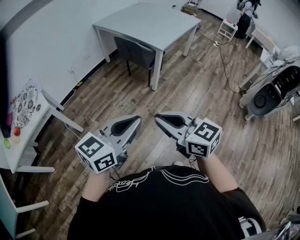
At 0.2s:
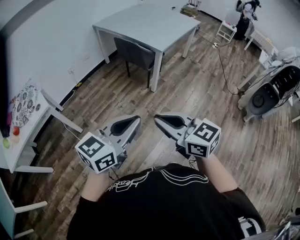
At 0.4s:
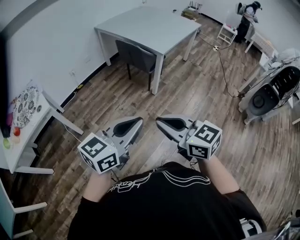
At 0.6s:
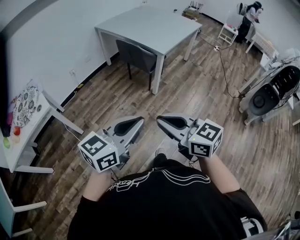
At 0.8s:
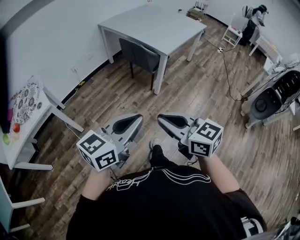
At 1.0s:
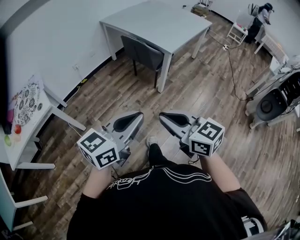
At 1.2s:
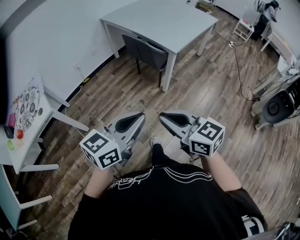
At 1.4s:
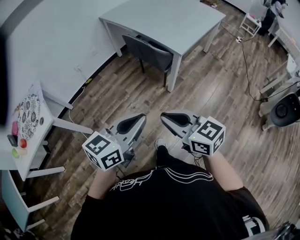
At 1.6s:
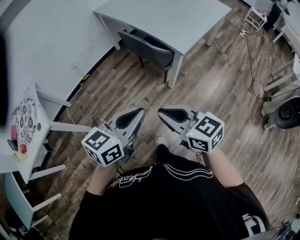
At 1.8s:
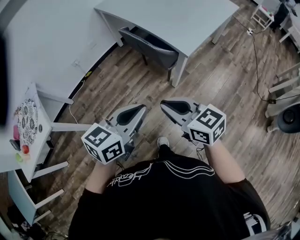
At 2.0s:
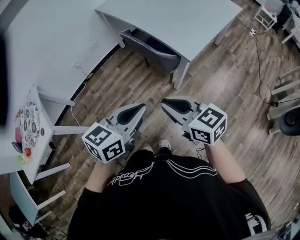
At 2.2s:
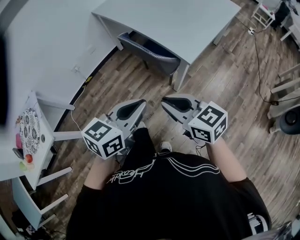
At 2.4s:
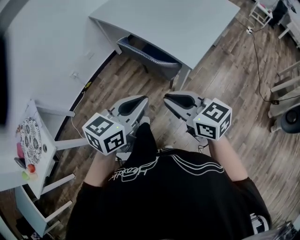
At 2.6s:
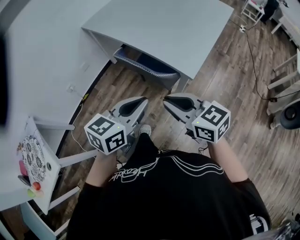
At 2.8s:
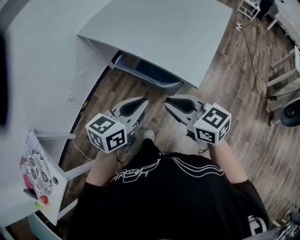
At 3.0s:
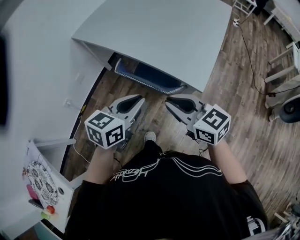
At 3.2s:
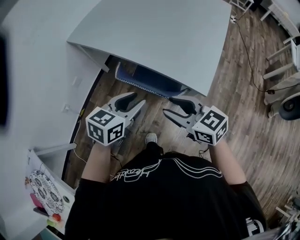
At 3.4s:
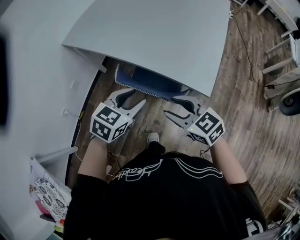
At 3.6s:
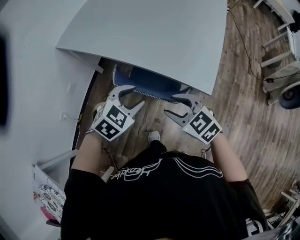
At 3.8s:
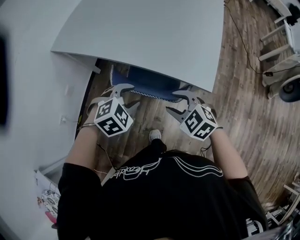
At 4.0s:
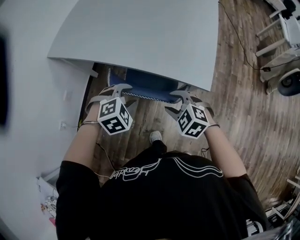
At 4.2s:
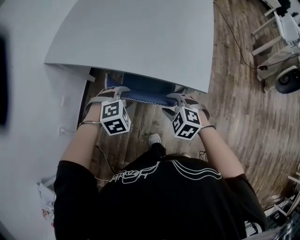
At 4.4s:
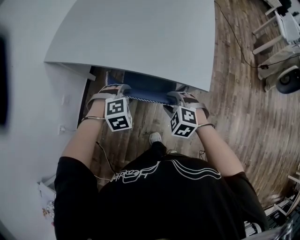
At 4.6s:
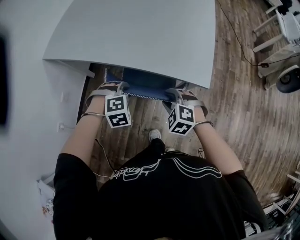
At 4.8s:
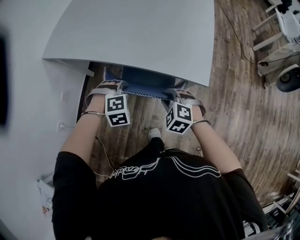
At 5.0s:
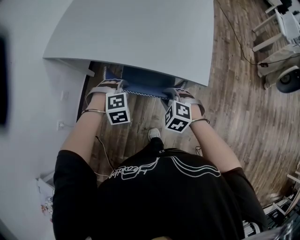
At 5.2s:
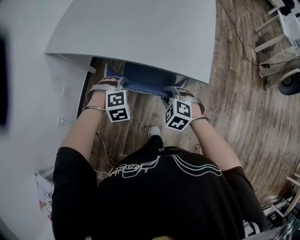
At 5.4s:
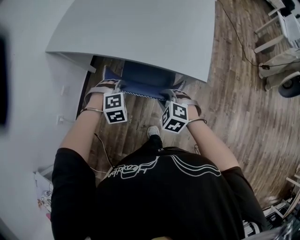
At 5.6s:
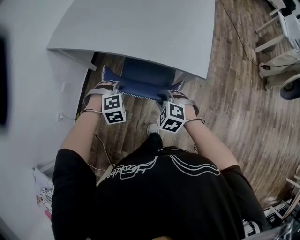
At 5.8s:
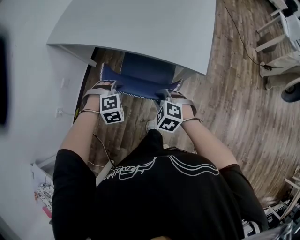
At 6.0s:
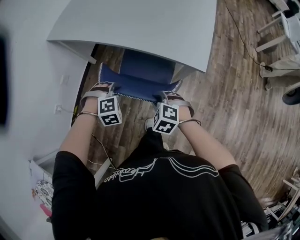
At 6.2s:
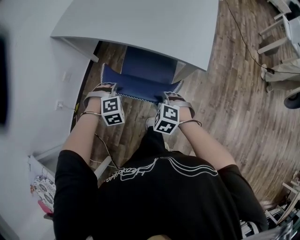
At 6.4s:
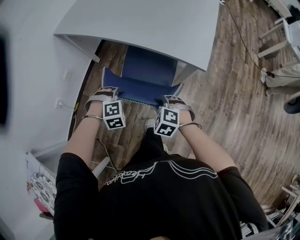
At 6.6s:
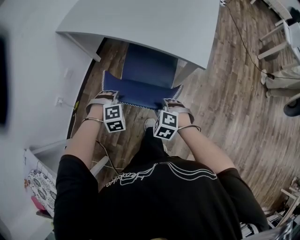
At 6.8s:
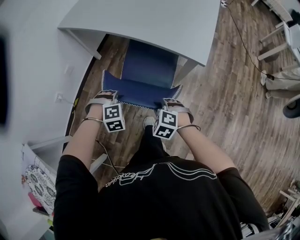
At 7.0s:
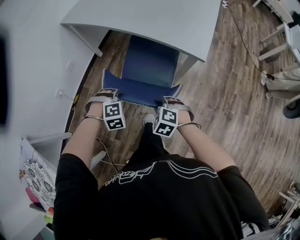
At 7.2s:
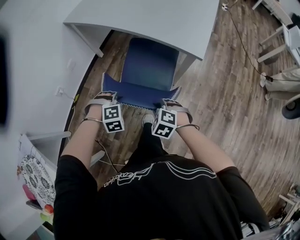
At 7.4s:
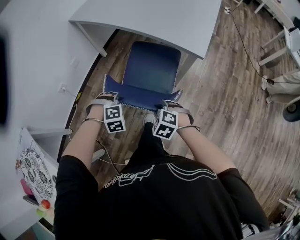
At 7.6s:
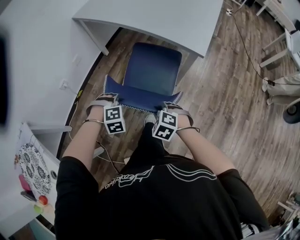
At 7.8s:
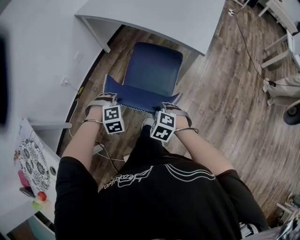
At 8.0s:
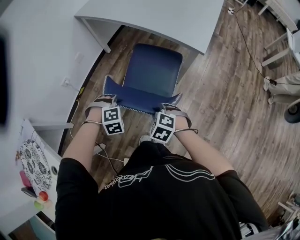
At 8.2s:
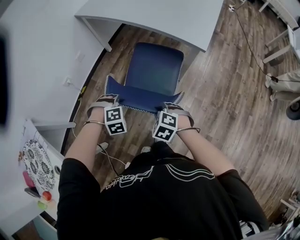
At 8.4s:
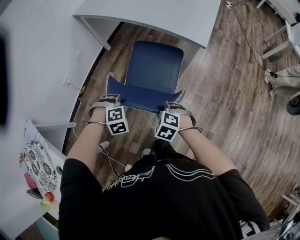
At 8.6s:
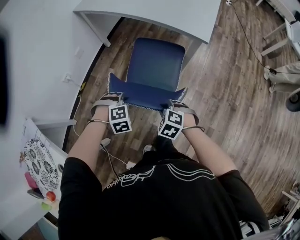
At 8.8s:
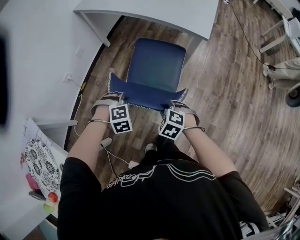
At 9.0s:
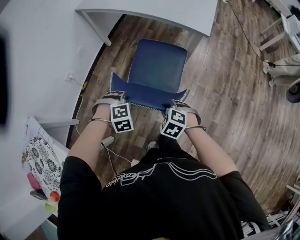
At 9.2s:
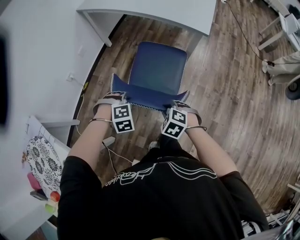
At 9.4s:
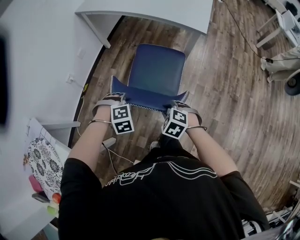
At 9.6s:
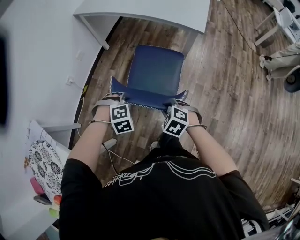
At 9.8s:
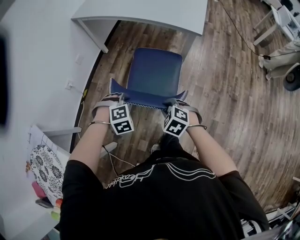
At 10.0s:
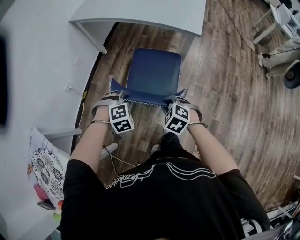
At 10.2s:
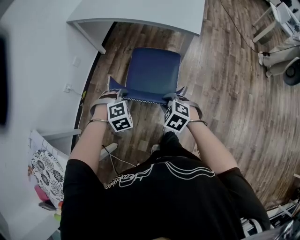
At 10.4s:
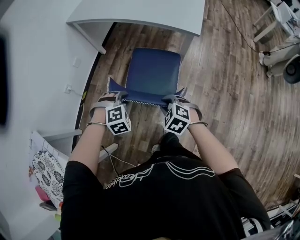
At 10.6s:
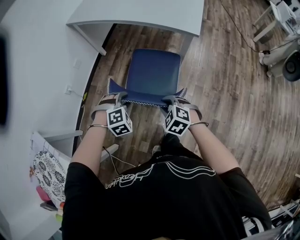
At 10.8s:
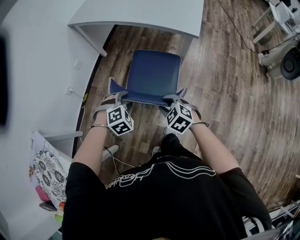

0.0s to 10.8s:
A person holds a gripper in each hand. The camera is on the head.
0.0s to 1.6s: Both grippers travel together forward, about 30 cm.
1.6s to 3.0s: The grippers both shift forward by about 35 cm.
3.0s to 4.6s: Both grippers move downward and forward, about 25 cm. The right gripper points its fingers some 40 degrees further downward, and opens up. The left gripper rolls clockwise, seen from behind, by roughly 80 degrees, and opens up.
4.6s to 6.2s: The grippers both shift backward by some 10 cm. The right gripper closes its fingers.
6.2s to 7.8s: The grippers both shift backward by about 20 cm.
7.8s to 9.2s: Both grippers move backward and to the left, some 10 cm.
9.2s to 10.8s: The left gripper moves about 5 cm, and opens up. The right gripper changes place by roughly 5 cm.

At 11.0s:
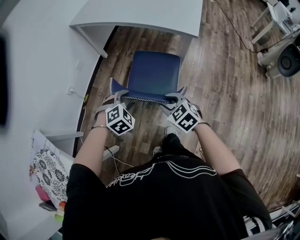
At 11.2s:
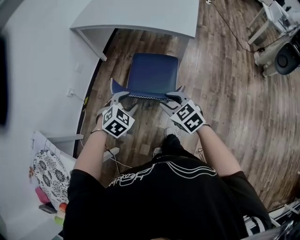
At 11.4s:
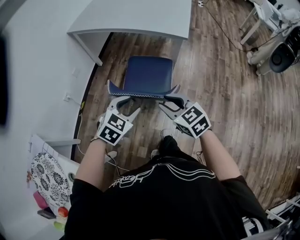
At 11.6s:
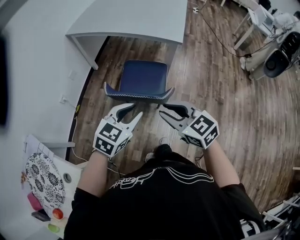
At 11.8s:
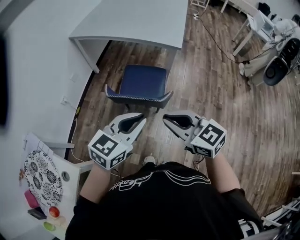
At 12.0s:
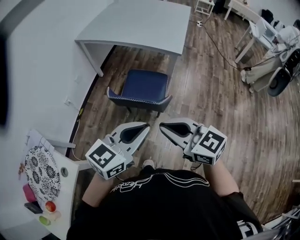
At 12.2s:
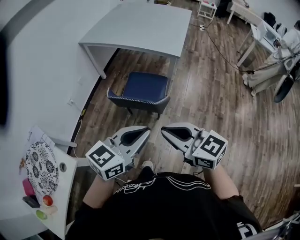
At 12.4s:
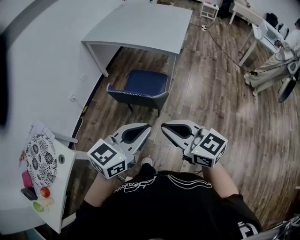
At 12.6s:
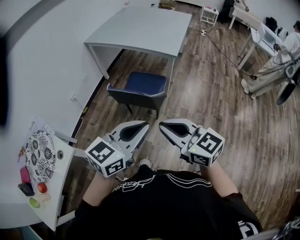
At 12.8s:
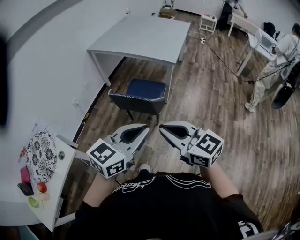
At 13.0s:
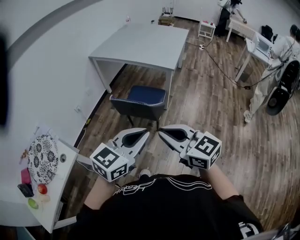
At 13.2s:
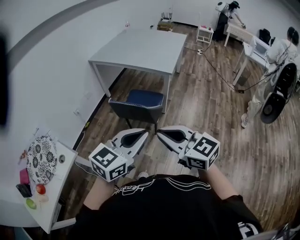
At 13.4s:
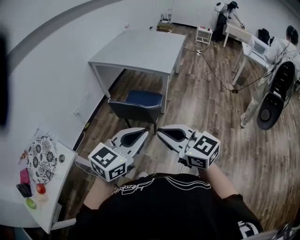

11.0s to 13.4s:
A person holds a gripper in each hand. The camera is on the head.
11.0s to 12.2s: The right gripper shifts roughly 35 cm upward and backward, angles its fingers upward, by roughly 30 degrees, and closes up. Meanwhile the left gripper travels upward, backward and to the right by about 40 cm, tilts its fingers roughly 50 degrees upward, and closes.
12.2s to 13.4s: Both grippers travel together backward, upward and to the right, some 15 cm.

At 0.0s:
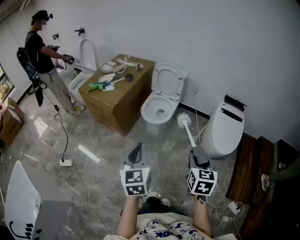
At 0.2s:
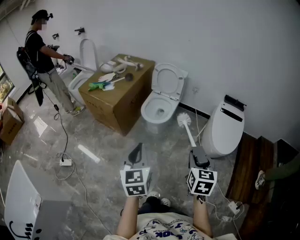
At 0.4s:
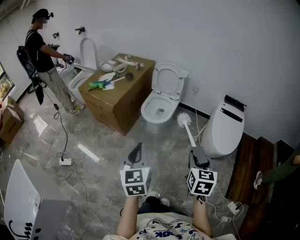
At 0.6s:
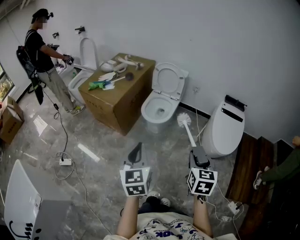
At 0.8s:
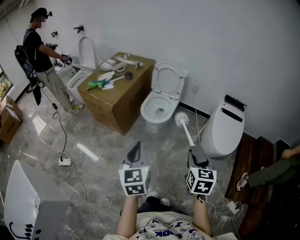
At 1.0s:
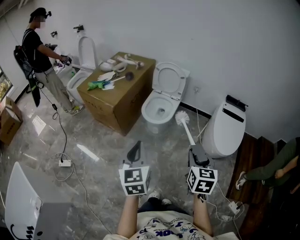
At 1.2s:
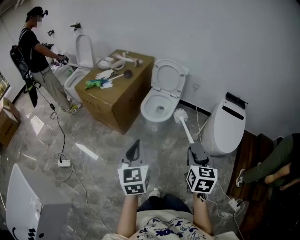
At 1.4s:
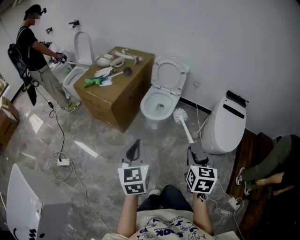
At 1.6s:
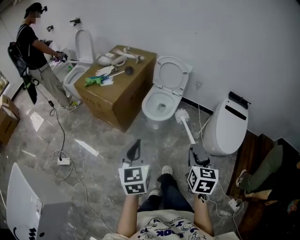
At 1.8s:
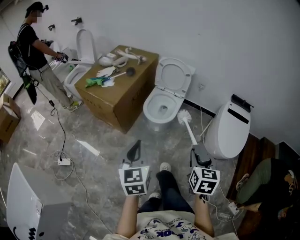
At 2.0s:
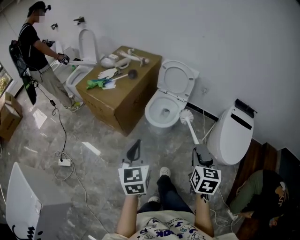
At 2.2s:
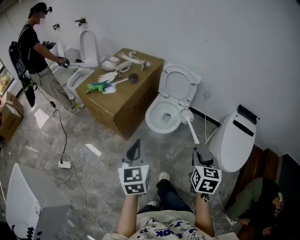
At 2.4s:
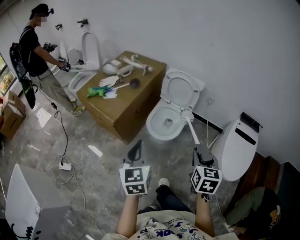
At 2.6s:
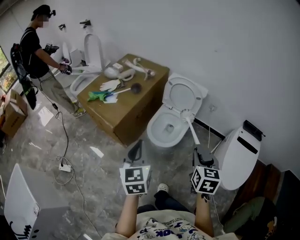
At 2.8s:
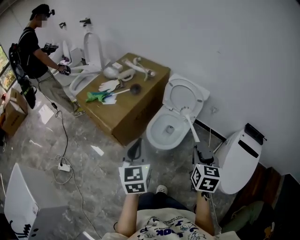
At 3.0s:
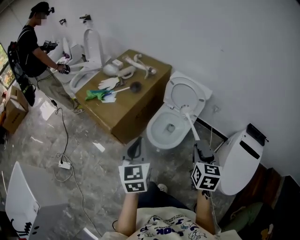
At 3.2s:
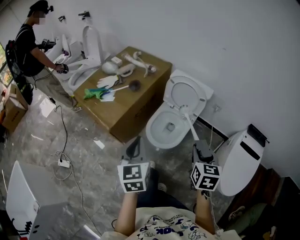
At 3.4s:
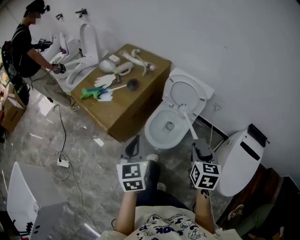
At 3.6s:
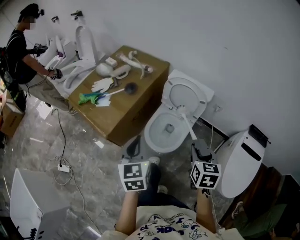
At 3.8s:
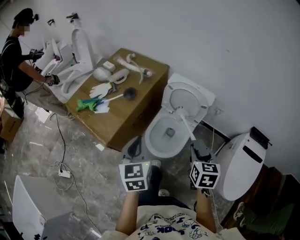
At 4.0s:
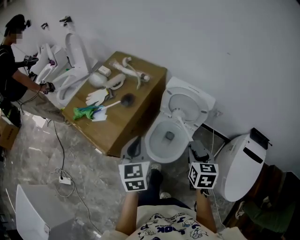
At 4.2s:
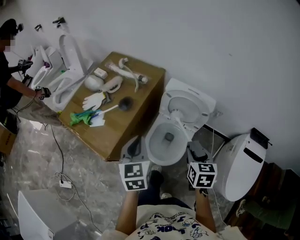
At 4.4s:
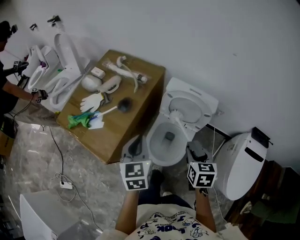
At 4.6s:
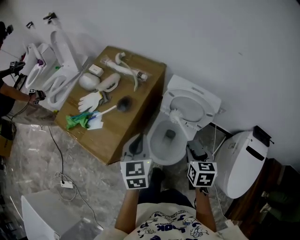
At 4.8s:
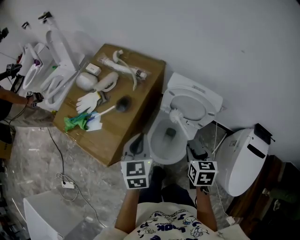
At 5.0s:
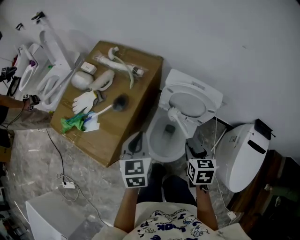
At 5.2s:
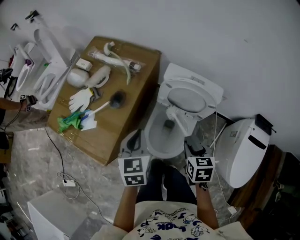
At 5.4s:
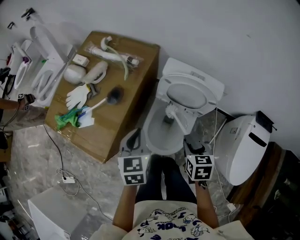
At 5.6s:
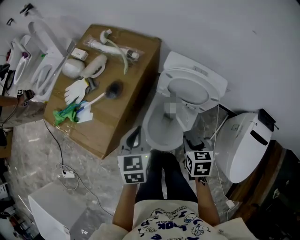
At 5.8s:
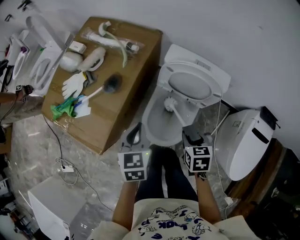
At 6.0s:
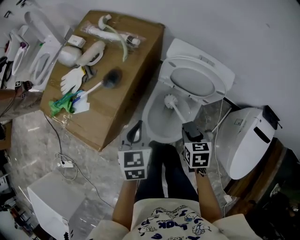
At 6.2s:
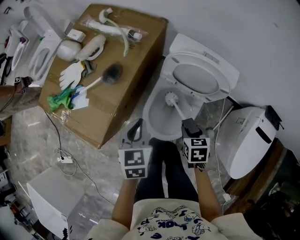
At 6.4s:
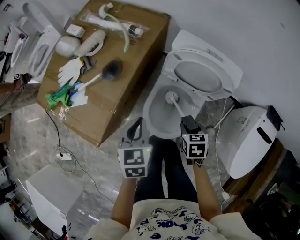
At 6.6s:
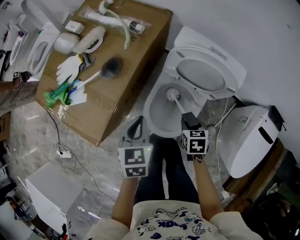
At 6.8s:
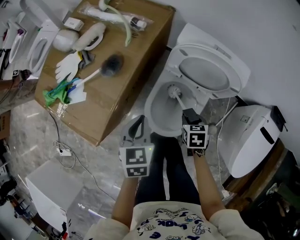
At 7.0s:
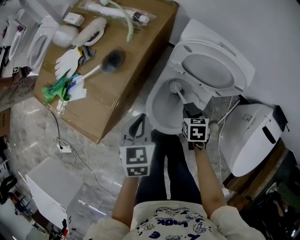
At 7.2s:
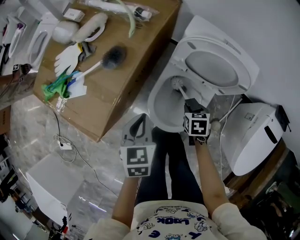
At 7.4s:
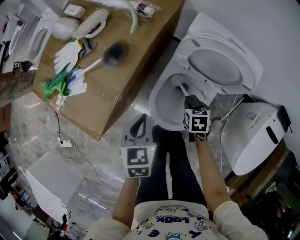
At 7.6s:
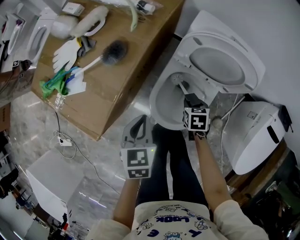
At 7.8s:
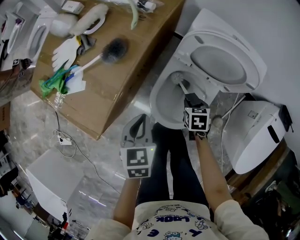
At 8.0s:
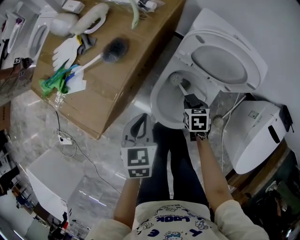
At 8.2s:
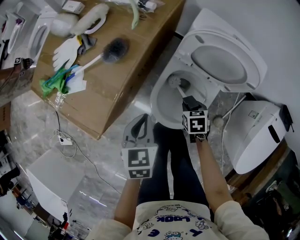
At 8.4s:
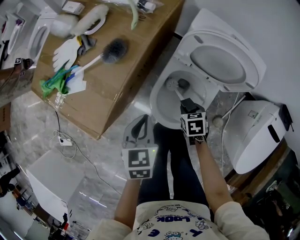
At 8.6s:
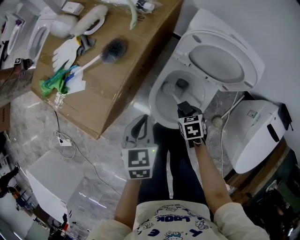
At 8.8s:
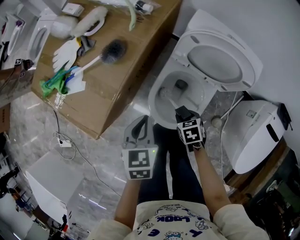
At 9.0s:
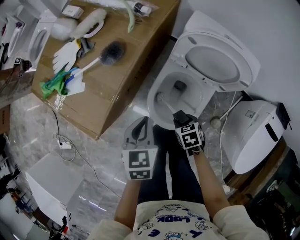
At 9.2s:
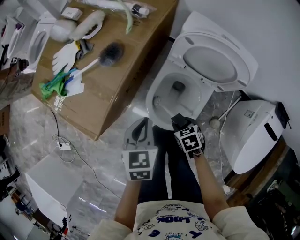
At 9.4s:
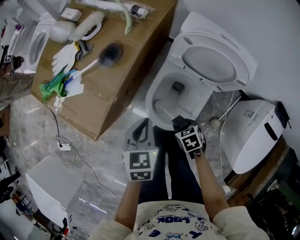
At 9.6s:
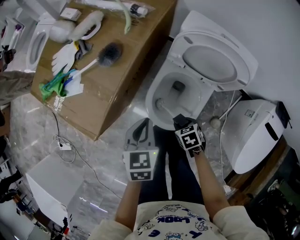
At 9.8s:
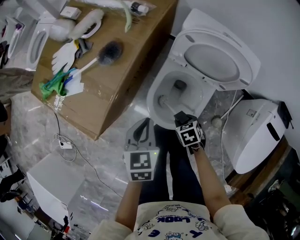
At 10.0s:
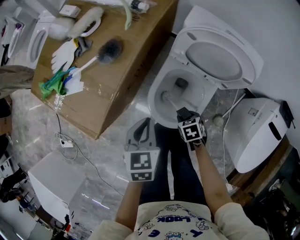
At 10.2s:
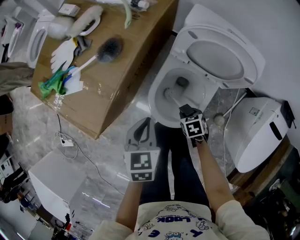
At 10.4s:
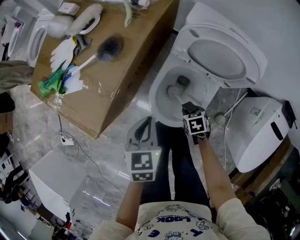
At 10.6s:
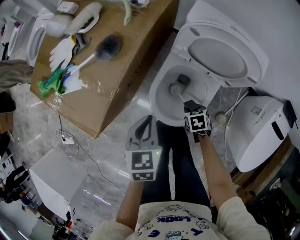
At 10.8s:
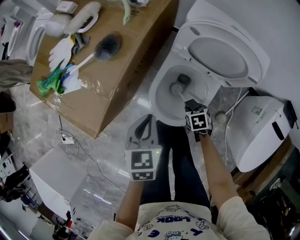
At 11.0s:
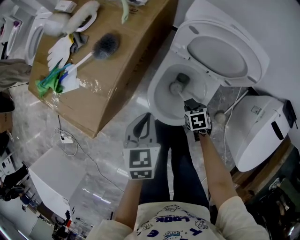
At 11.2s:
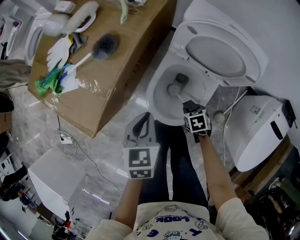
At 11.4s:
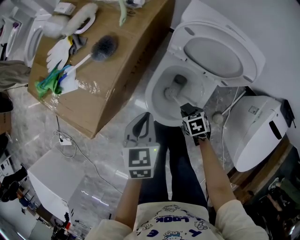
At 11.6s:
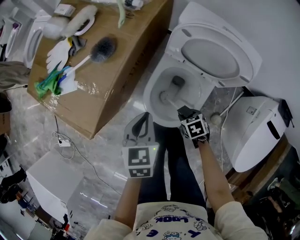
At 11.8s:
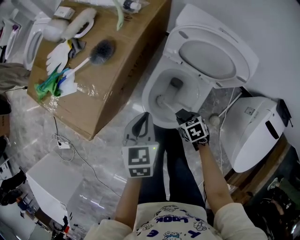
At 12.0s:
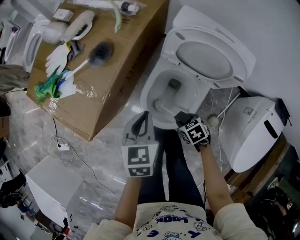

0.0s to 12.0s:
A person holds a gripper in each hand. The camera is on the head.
0.0s to 1.6s: Both grippers move forward and to the left, about 10 cm.
1.6s to 3.0s: The two grippers go roughly 30 cm forward.
3.0s to 4.4s: The grippers both shift forward by about 25 cm.
4.4s to 6.0s: Both grippers travel together downward, approximately 15 cm.
6.0s to 7.6s: The right gripper goes about 15 cm downward, while the left gripper heads downward, covering roughly 10 cm.
7.6s to 9.0s: The right gripper shifts about 10 cm backward and to the left.
9.0s to 10.4s: The right gripper moves downward, about 5 cm.
10.4s to 12.0s: The right gripper shifts by roughly 5 cm.
